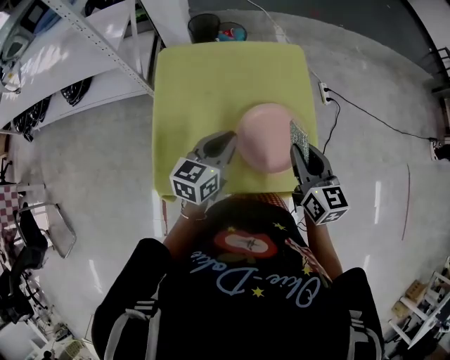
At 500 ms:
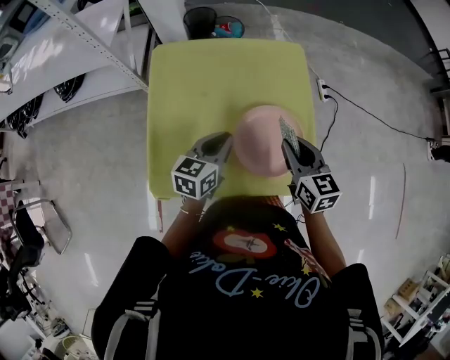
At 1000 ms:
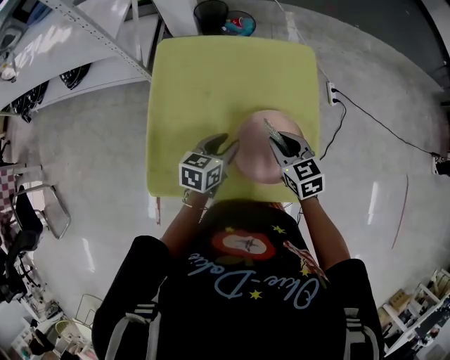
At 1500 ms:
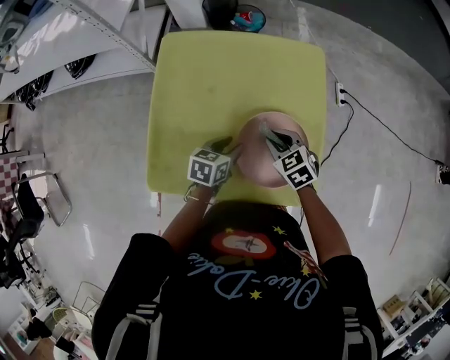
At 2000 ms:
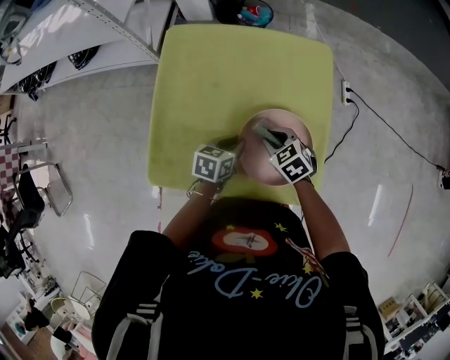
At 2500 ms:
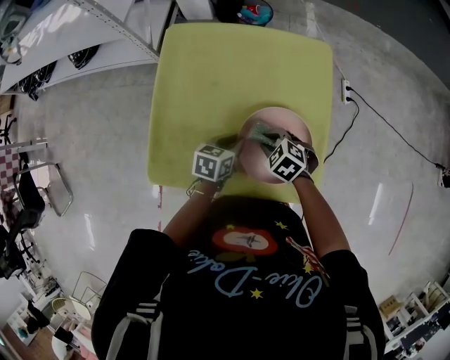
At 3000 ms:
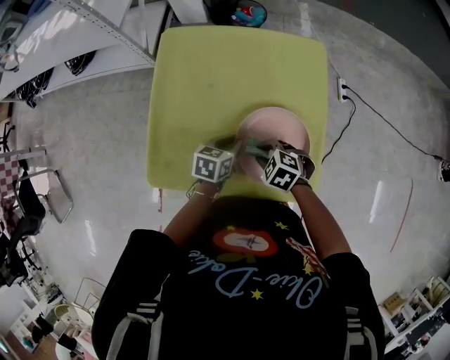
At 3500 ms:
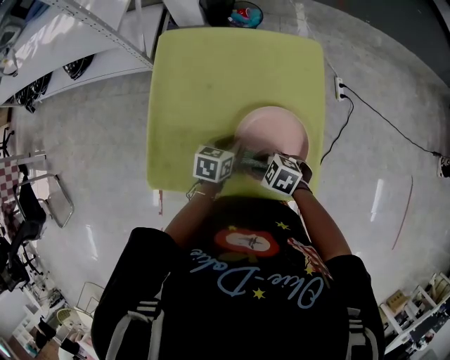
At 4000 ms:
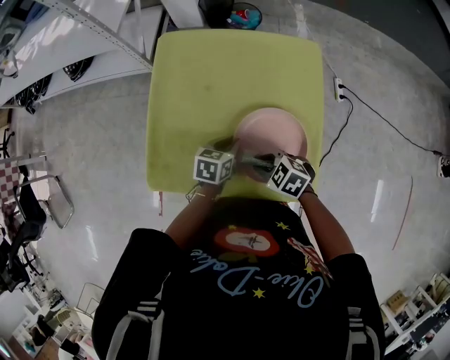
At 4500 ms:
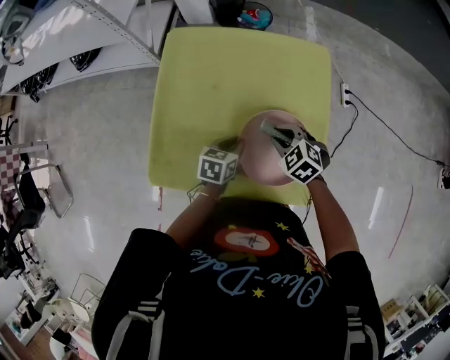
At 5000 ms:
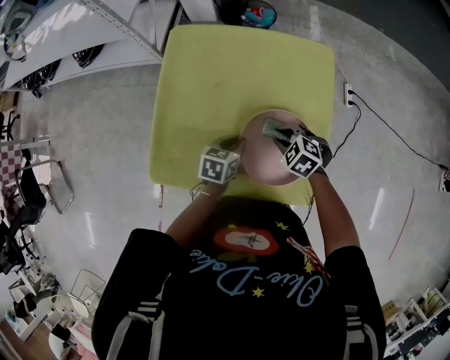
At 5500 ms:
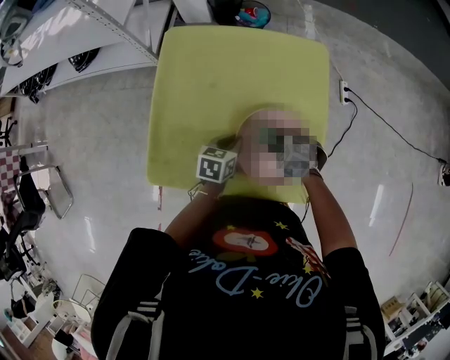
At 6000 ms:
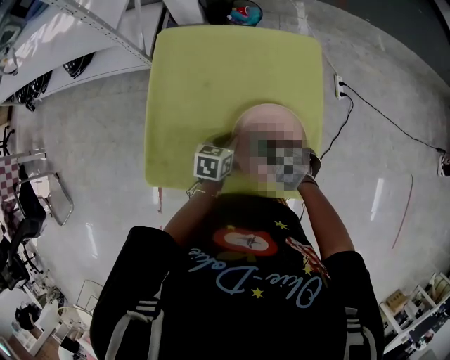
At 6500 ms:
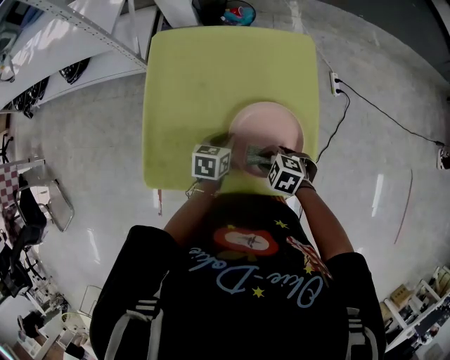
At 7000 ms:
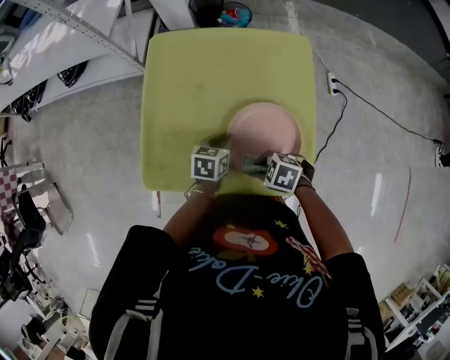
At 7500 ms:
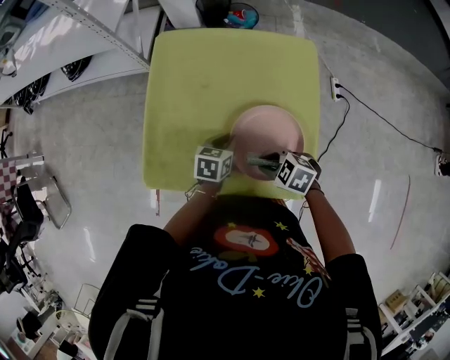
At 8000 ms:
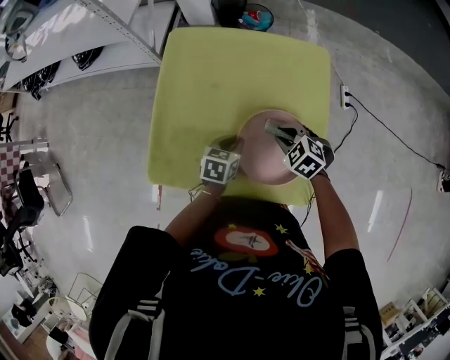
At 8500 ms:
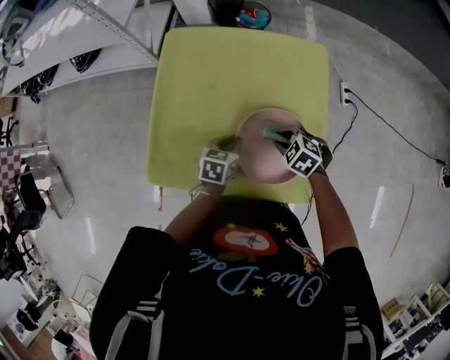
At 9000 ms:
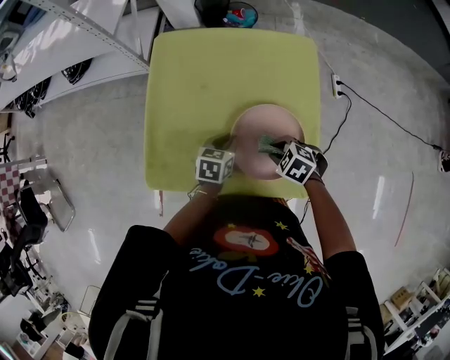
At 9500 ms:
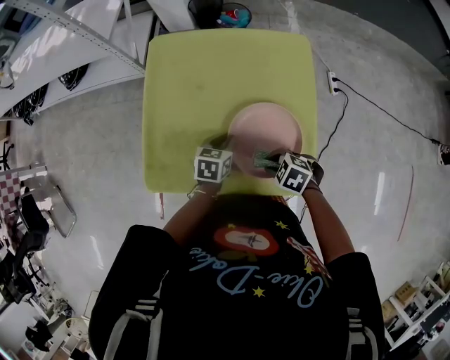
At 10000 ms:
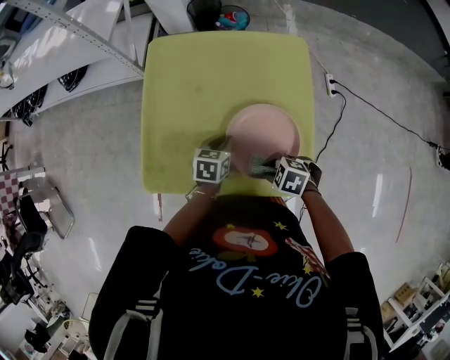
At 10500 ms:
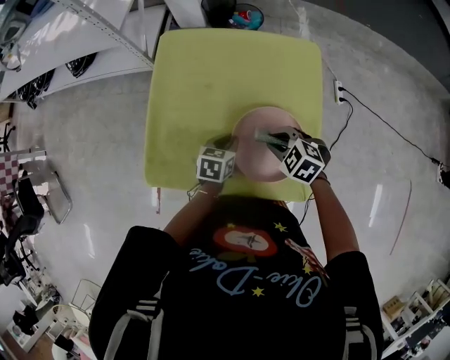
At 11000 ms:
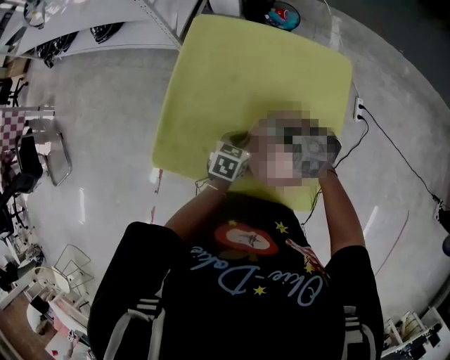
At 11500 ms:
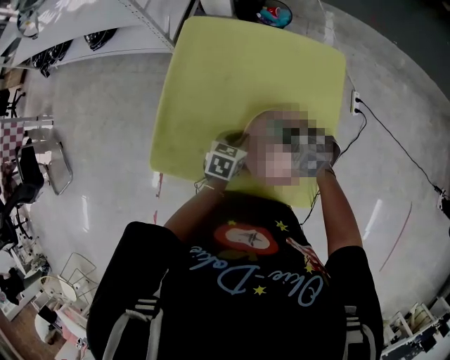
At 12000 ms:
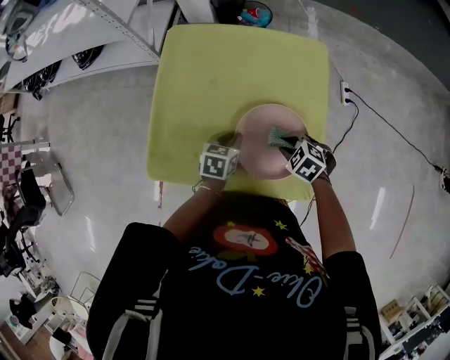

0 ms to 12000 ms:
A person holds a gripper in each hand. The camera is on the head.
0 ms to 2000 ms: The left gripper is displaced downward by approximately 15 cm, rotates some 30 degrees, and opens, then closes once more. The right gripper moves downward and forward, roughly 20 cm, and tips its fingers downward by approximately 40 degrees.
2000 ms to 4000 ms: The right gripper moves roughly 10 cm, and changes its angle by approximately 20 degrees.
4000 ms to 6000 ms: The right gripper goes forward and returns, approximately 10 cm each way.
6000 ms to 8000 ms: The right gripper shifts by approximately 10 cm.
8000 ms to 10000 ms: The right gripper changes place by roughly 15 cm, and rotates about 20 degrees.

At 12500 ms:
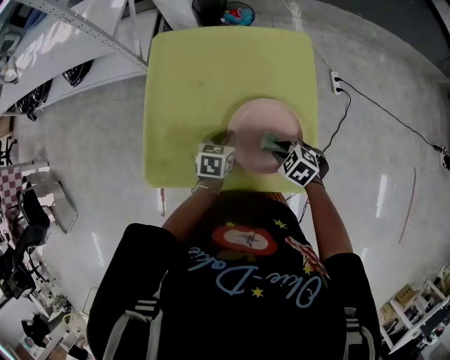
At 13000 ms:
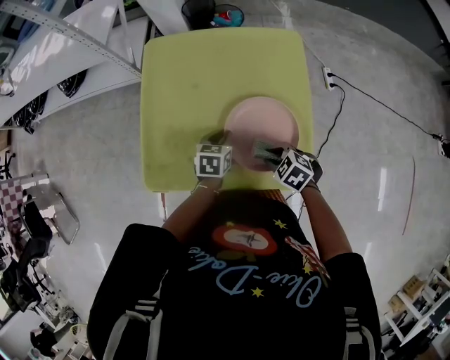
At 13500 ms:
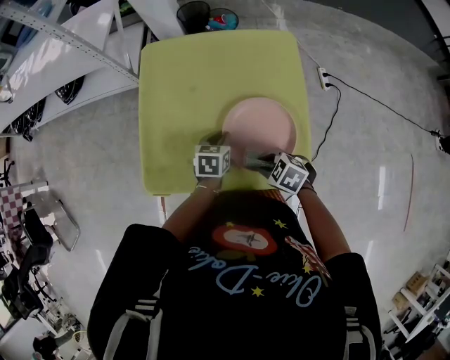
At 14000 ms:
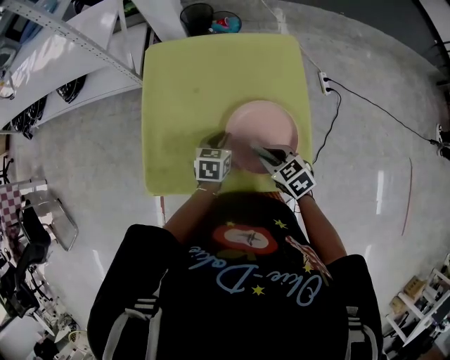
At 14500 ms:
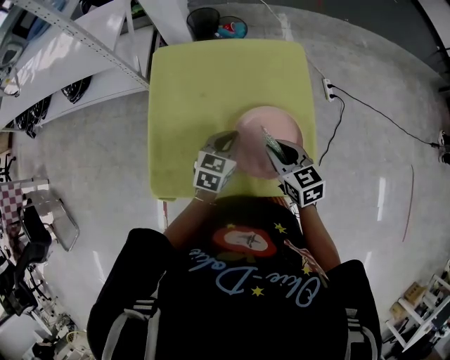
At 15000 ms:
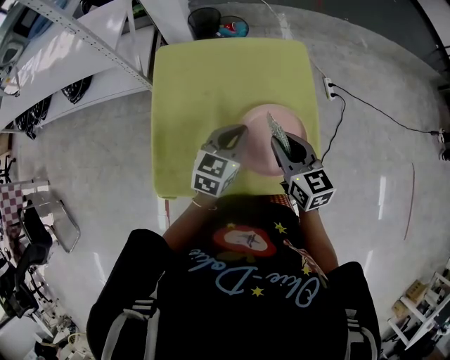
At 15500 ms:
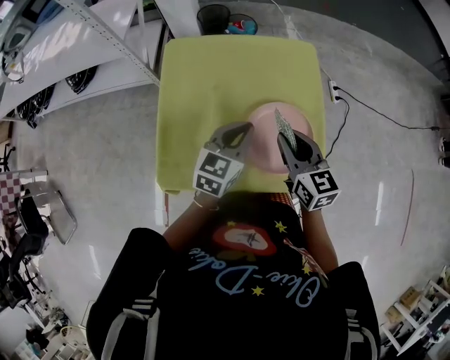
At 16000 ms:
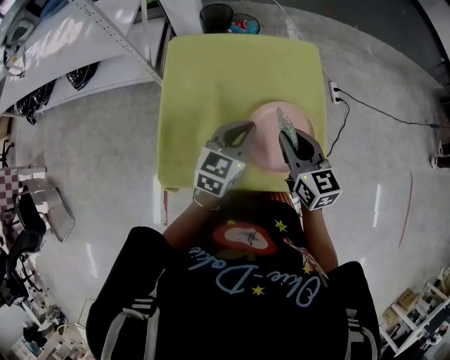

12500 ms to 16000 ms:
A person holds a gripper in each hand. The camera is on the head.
12500 ms to 14500 ms: Both grippers travel together upward, some 10 cm. The left gripper rotates roughly 20 degrees. The right gripper tilts its fingers roughly 30 degrees upward.
14500 ms to 16000 ms: The grippers both shift upward by roughly 10 cm.

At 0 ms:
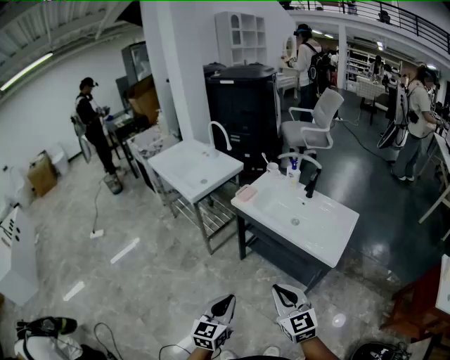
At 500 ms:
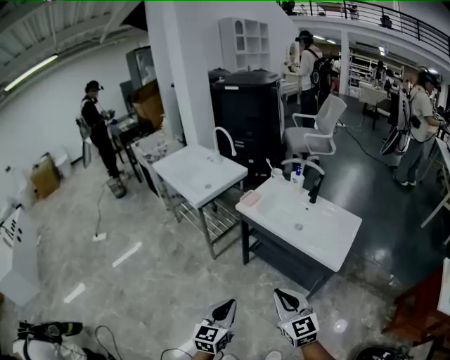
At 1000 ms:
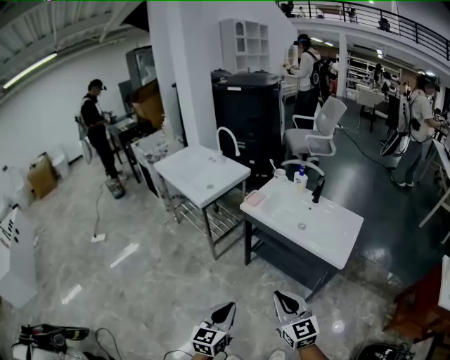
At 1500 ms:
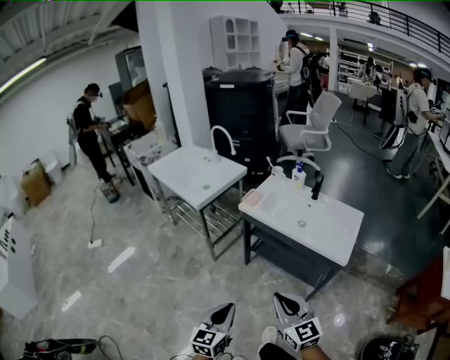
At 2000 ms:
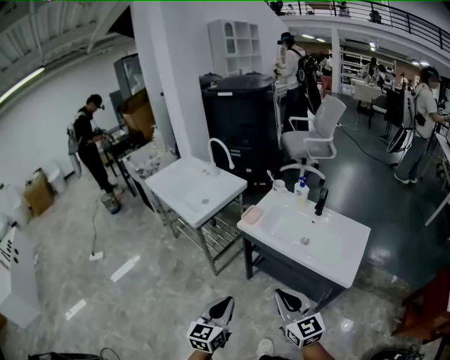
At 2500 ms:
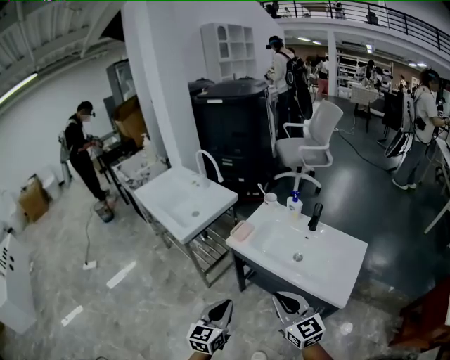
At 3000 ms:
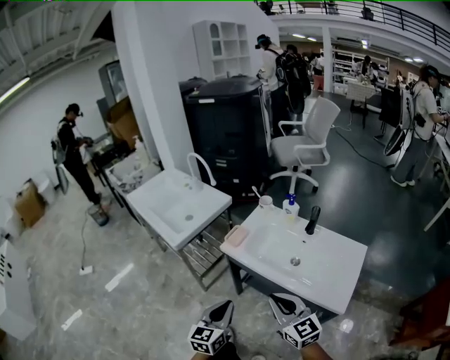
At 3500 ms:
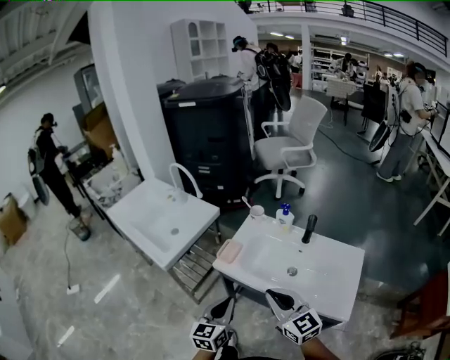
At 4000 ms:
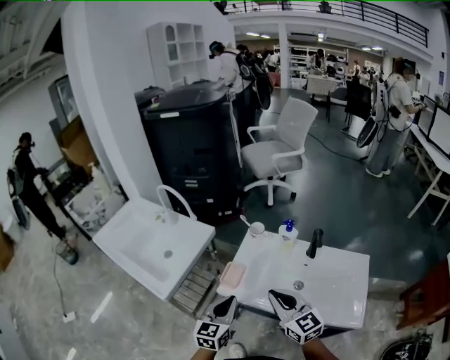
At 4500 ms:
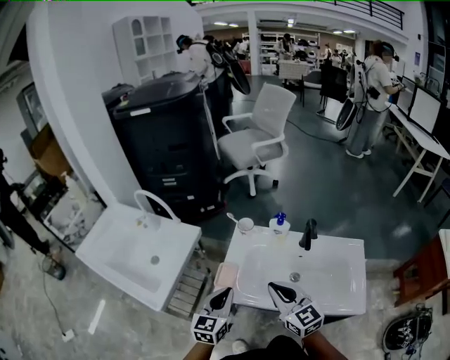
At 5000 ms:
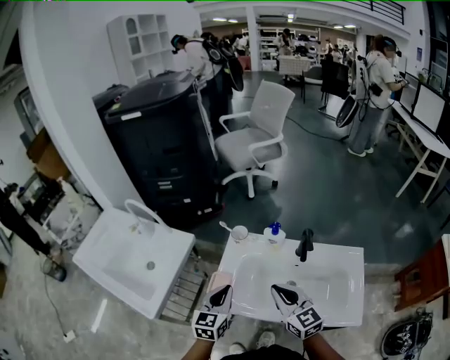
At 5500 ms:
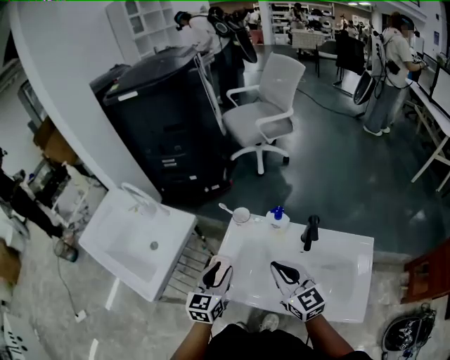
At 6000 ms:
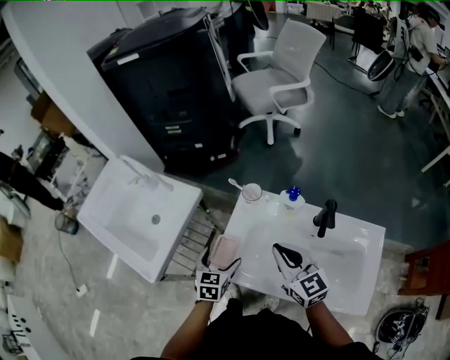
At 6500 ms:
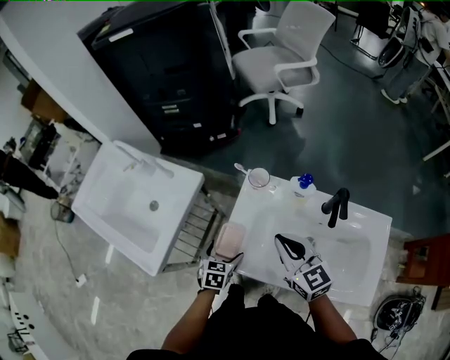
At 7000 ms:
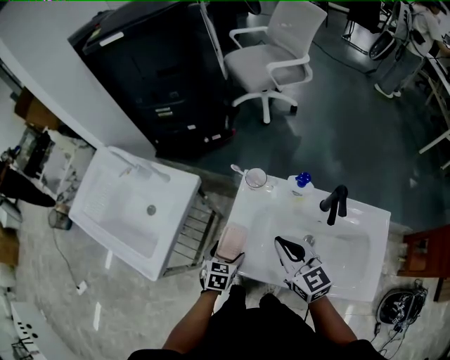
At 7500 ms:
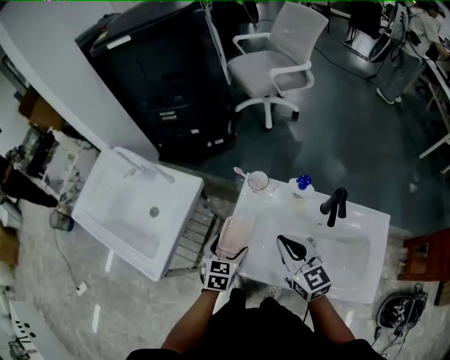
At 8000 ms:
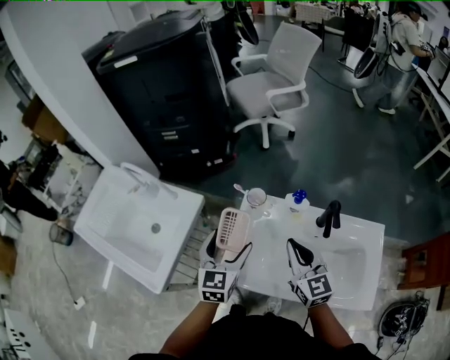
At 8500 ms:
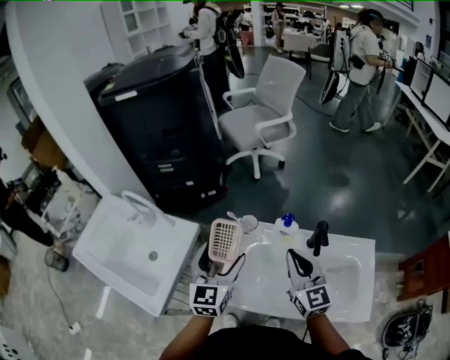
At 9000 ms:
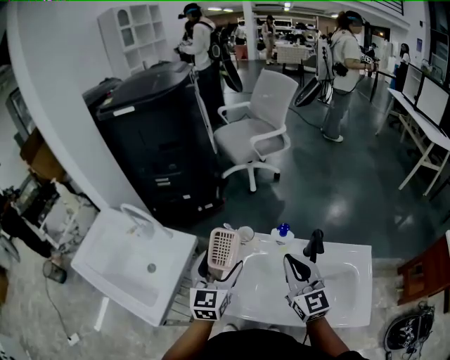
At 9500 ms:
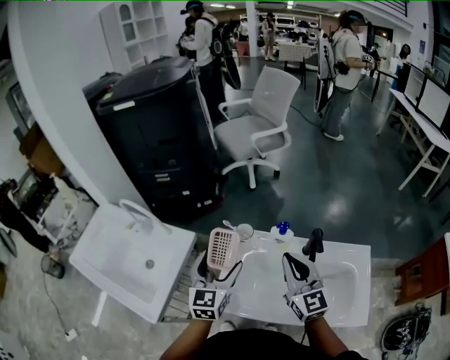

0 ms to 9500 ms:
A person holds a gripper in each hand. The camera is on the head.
0 ms to 2000 ms: The left gripper goes about 15 cm forward and to the left. The right gripper is displaced forward by approximately 10 cm.
2000 ms to 4000 ms: The two grippers go about 35 cm forward.
4000 ms to 5500 ms: The left gripper moves forward, roughly 15 cm. Meanwhile the right gripper moves forward and to the right, roughly 15 cm.
5500 ms to 7500 ms: The left gripper travels downward by approximately 10 cm, changes its angle by approximately 20 degrees, and opens. The right gripper changes place by roughly 10 cm.
7500 ms to 9500 ms: The left gripper moves upward, some 20 cm, and changes its angle by roughly 30 degrees, while the right gripper heads upward and to the right, covering about 10 cm, and changes its angle by about 20 degrees.

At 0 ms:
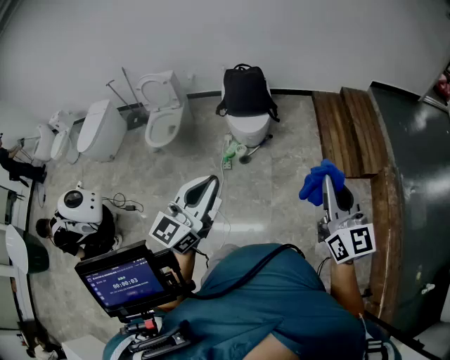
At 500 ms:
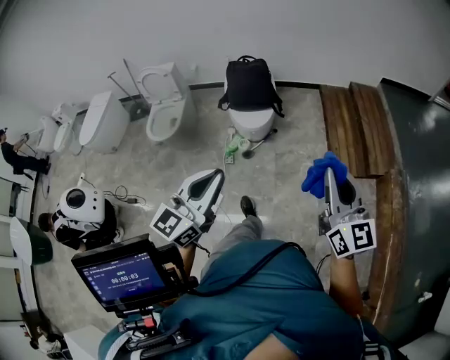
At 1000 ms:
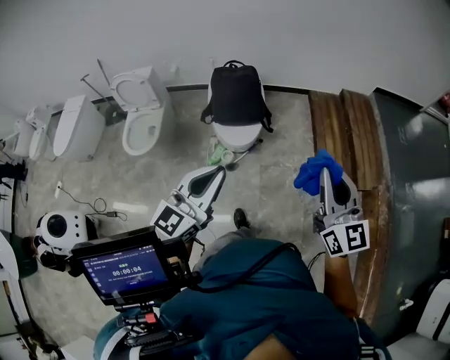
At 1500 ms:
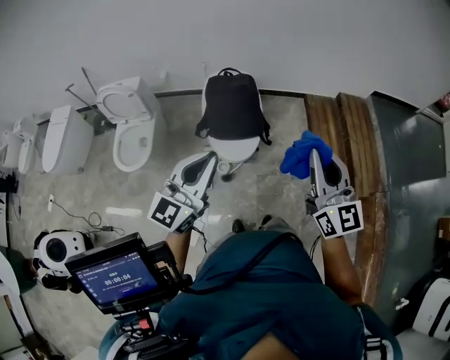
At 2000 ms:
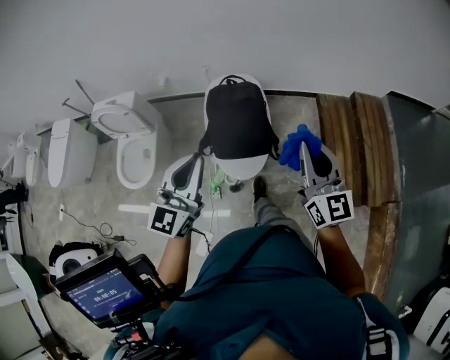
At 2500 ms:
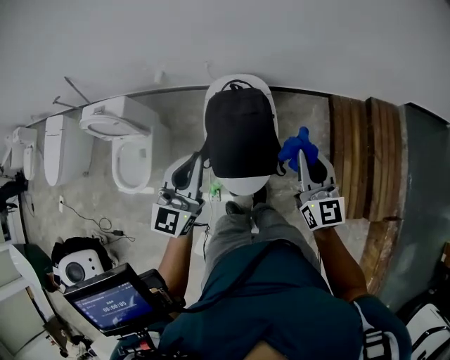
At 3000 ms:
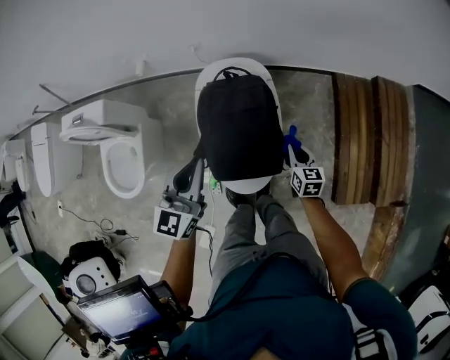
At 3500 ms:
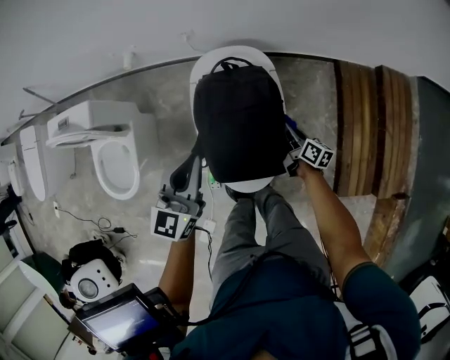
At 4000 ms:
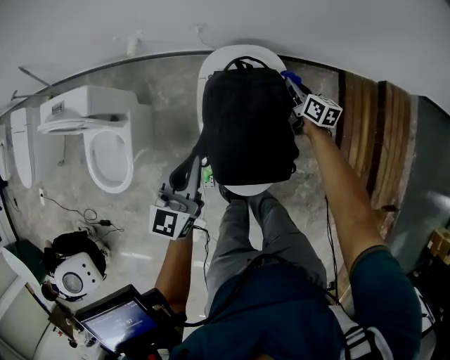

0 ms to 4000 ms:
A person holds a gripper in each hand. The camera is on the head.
0 ms to 2000 ms: The two grippers travel together, forward, roughly 60 cm.
2000 ms to 4000 ms: The left gripper travels downward and forward by about 35 cm, and swivels about 20 degrees, while the right gripper travels downward and forward by about 60 cm, and turns by roughly 50 degrees.
